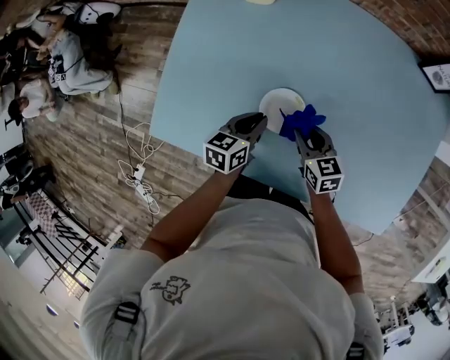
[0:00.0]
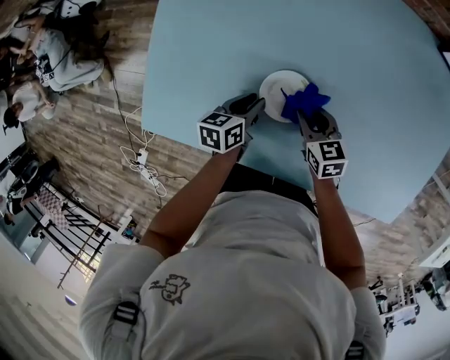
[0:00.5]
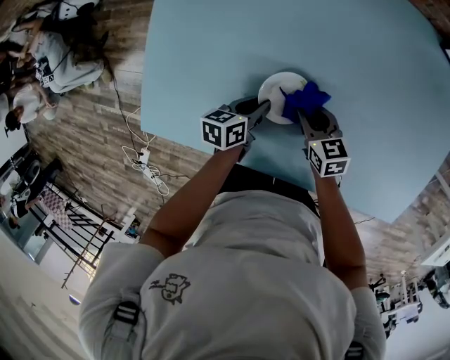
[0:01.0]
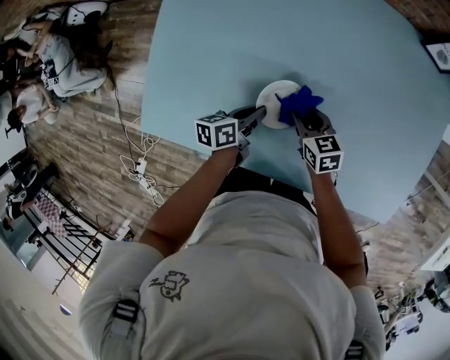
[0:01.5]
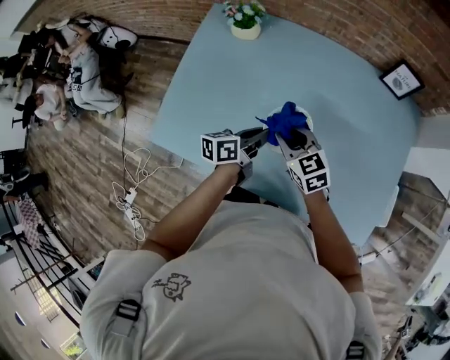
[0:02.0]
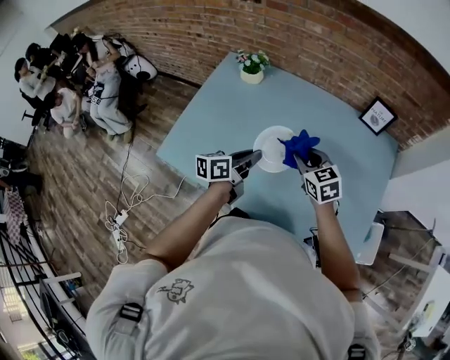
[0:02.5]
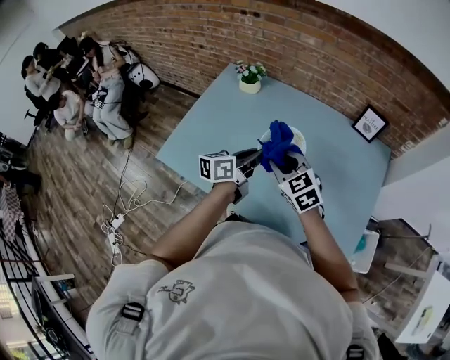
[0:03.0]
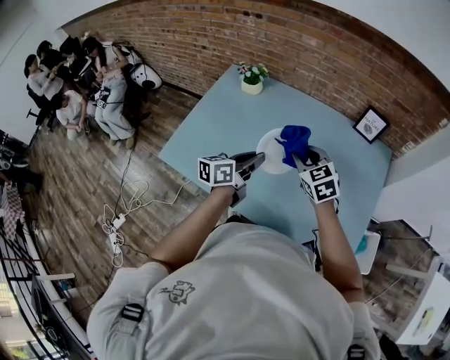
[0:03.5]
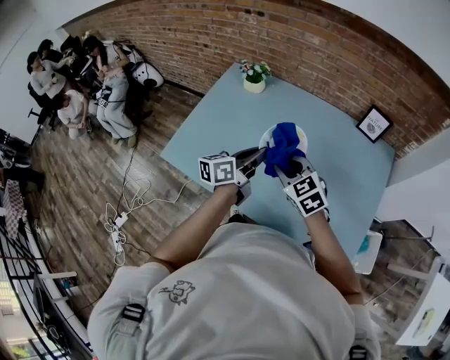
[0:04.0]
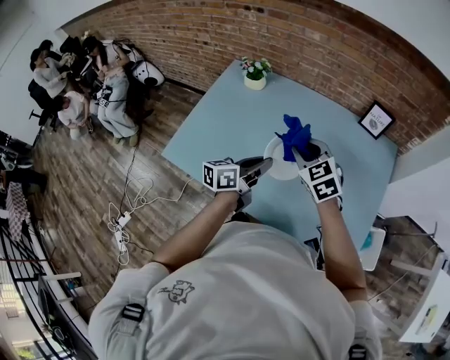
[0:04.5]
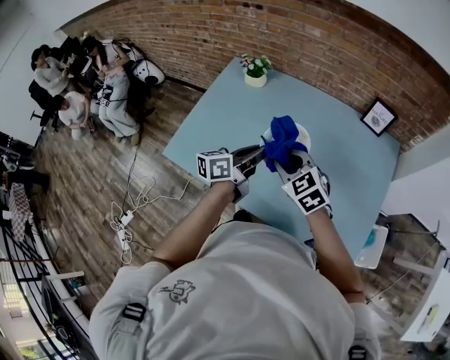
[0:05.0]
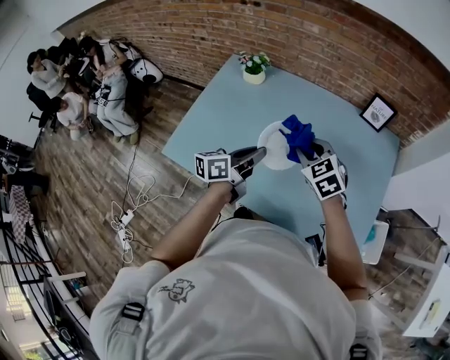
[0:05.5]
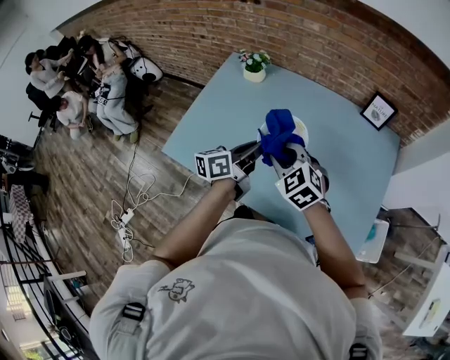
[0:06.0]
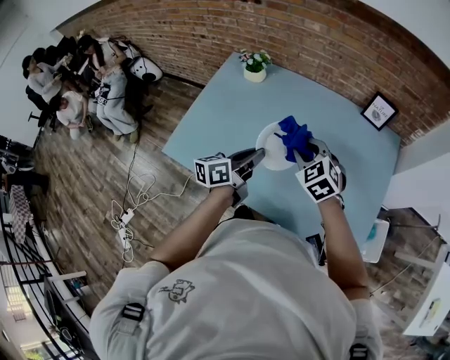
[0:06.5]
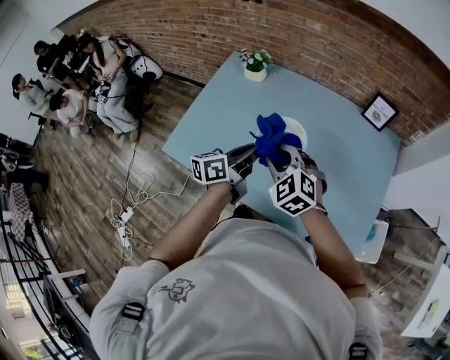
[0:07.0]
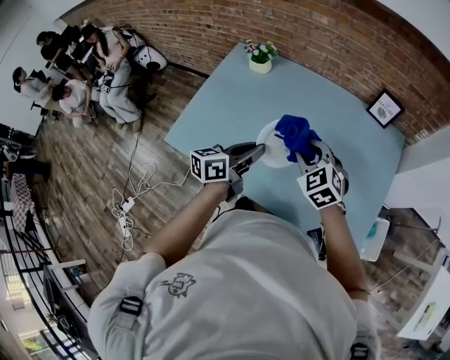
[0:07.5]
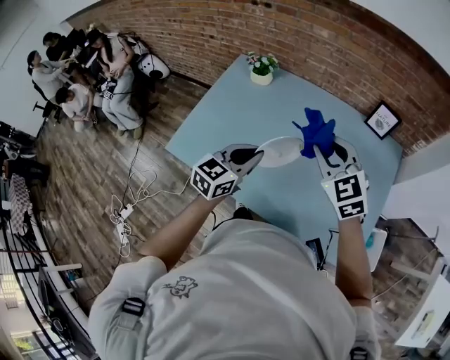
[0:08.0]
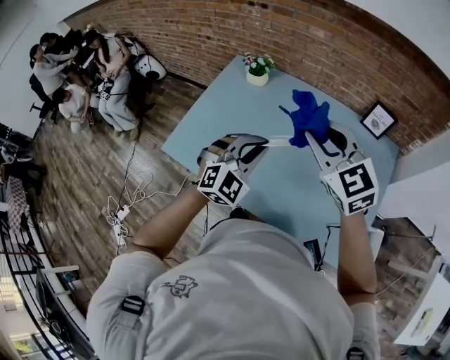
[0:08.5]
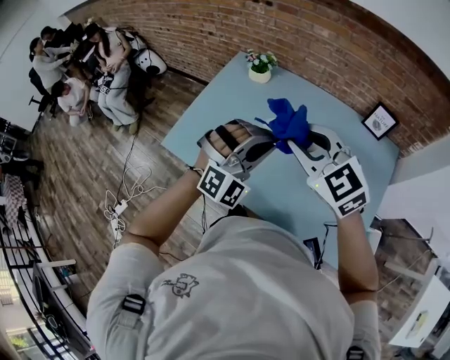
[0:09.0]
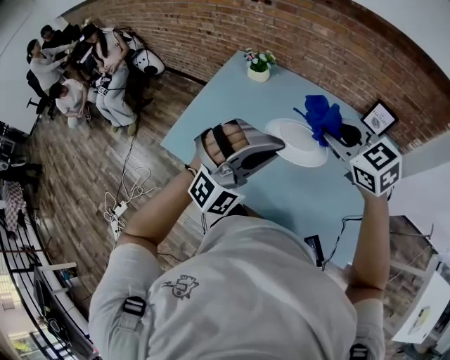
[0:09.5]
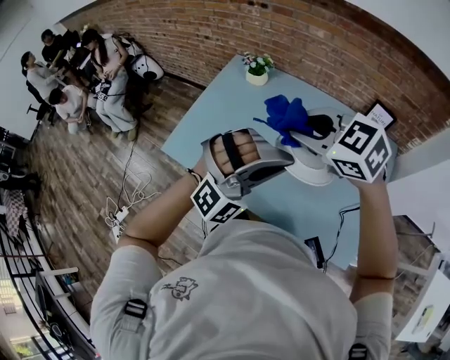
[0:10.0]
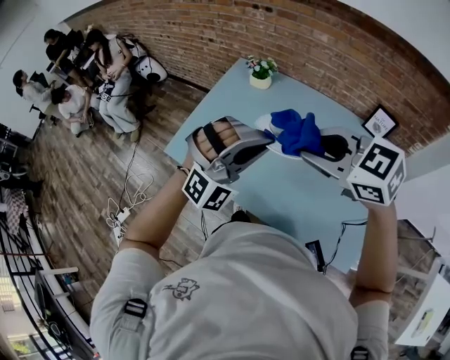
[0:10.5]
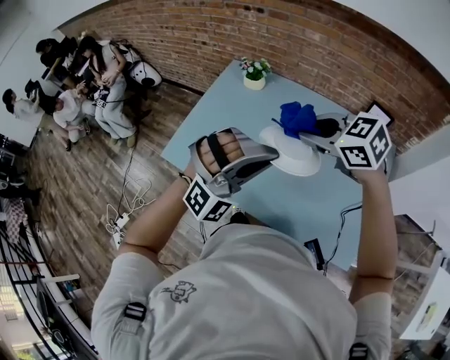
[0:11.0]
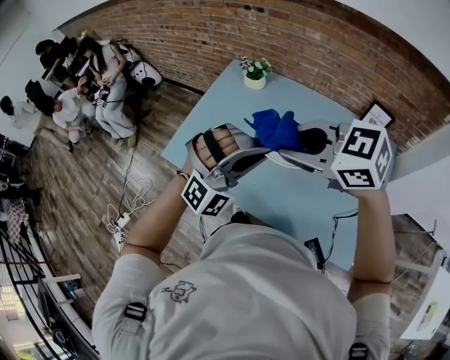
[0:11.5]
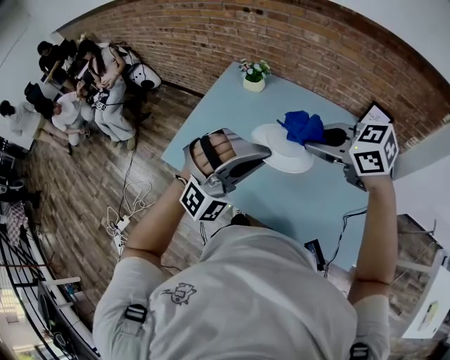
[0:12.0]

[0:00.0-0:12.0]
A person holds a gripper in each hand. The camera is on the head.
0:00.0 to 0:02.0: The right gripper heads upward, covering about 15 cm, and swivels approximately 20 degrees. The left gripper heads upward and to the right, covering some 15 cm, and swivels about 20 degrees.
0:02.0 to 0:04.0: Both grippers move upward and backward, approximately 20 cm. The left gripper turns by about 20 degrees.
0:06.0 to 0:08.0: The left gripper ends up some 5 cm from where it was, and turns by roughly 40 degrees, while the right gripper goes about 15 cm upward and to the right.
0:08.0 to 0:10.0: The left gripper heads upward, backward and to the right, covering about 15 cm, and rolls clockwise, seen from behind, by about 90 degrees; the right gripper swings left and right, approximately 10 cm each way, with 2 reversals, and rotates about 30 degrees.
0:10.0 to 0:12.0: The right gripper moves some 5 cm; the left gripper ends up roughly 5 cm from where it was.

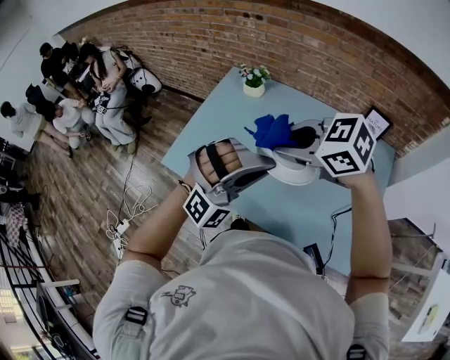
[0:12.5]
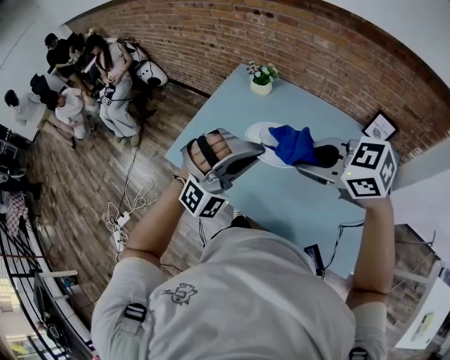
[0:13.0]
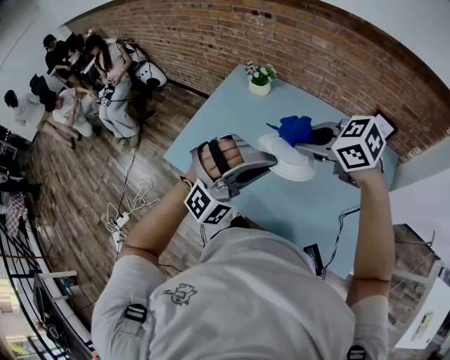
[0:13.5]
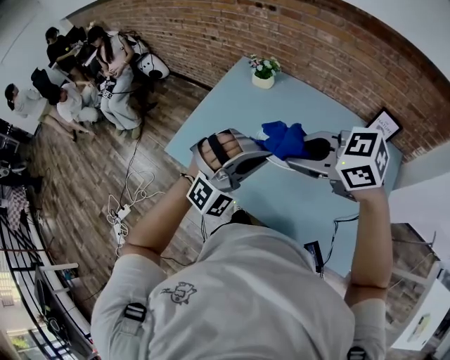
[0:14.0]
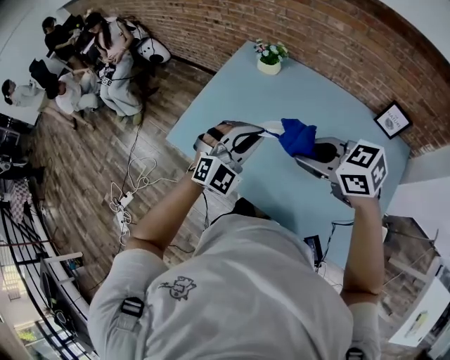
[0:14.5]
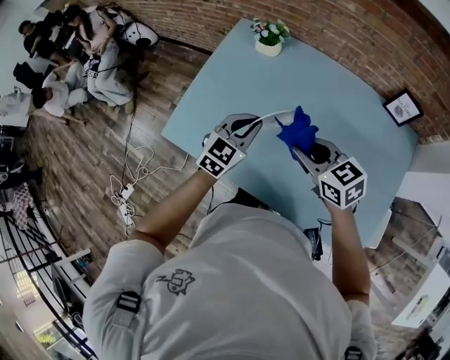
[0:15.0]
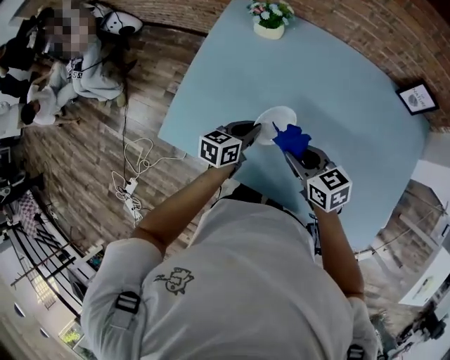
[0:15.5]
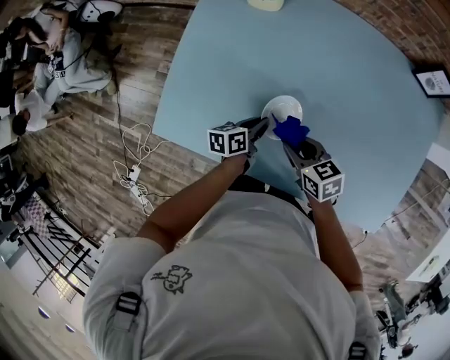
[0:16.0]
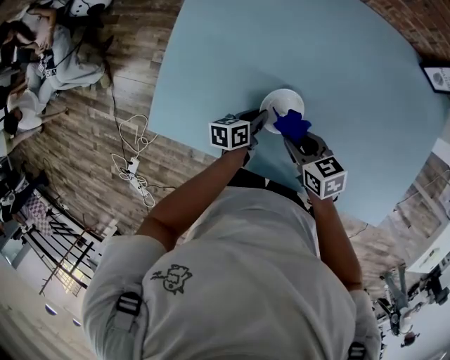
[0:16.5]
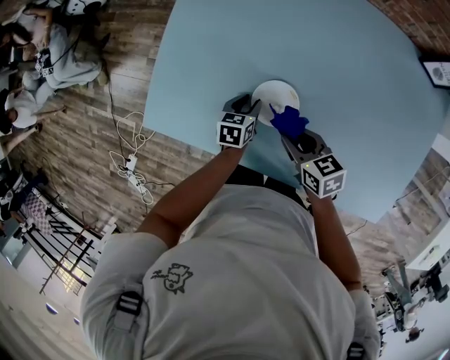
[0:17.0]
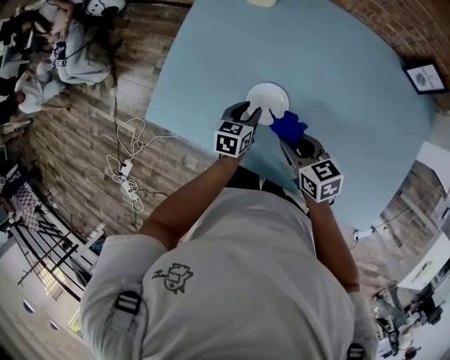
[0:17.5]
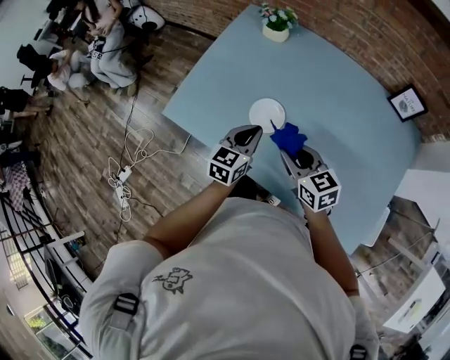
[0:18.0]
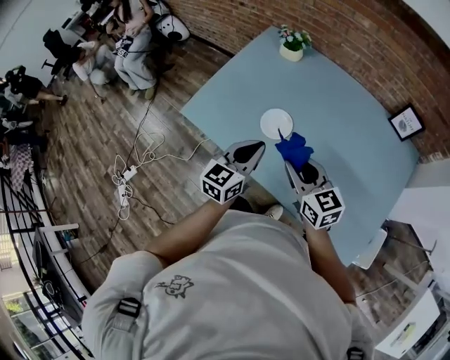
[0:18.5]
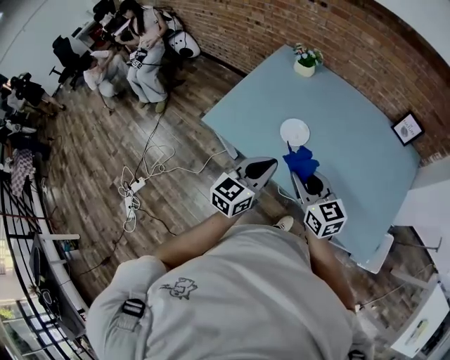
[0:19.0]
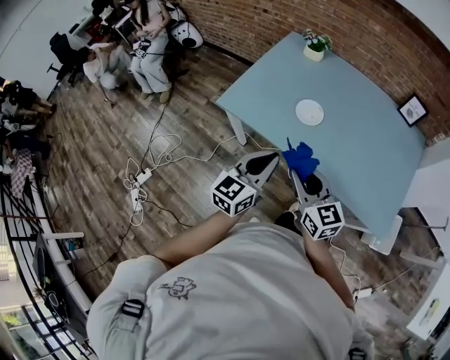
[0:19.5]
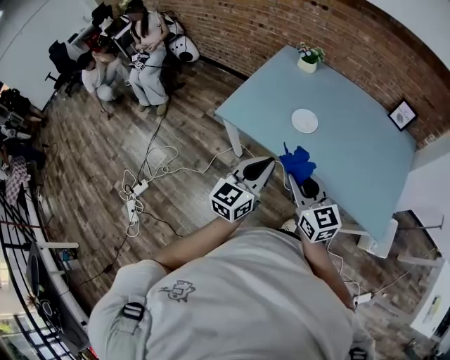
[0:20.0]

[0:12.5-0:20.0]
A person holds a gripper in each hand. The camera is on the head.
0:12.5 to 0:14.5: The left gripper moves approximately 15 cm, and turns by roughly 40 degrees; the right gripper heads downward, covering roughly 10 cm.
0:14.5 to 0:16.5: The two grippers go some 35 cm downward. The right gripper swivels some 40 degrees. The left gripper rotates around the line of its fingers by roughly 100 degrees, counterclockwise from behind.
0:16.5 to 0:18.0: Both grippers travel together upward and backward, approximately 20 cm. The left gripper rotates about 40 degrees, and opens and closes again. Meanwhile the right gripper rotates some 30 degrees.
0:18.0 to 0:20.0: Both grippers travel together backward, to the left and upward, roughly 35 cm. The left gripper changes its angle by roughly 20 degrees; the right gripper swivels roughly 20 degrees.

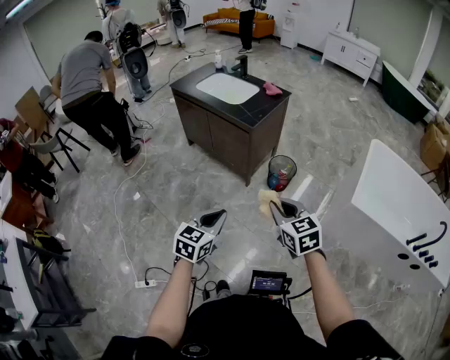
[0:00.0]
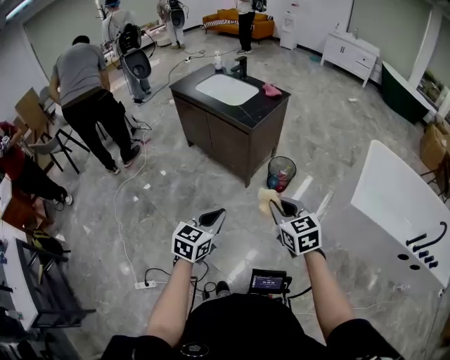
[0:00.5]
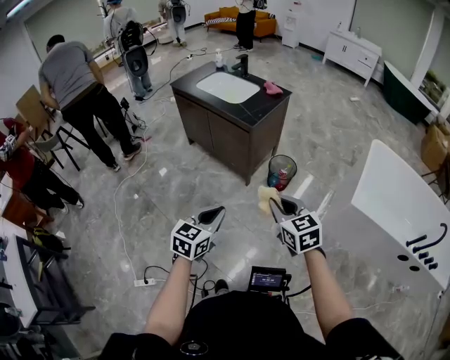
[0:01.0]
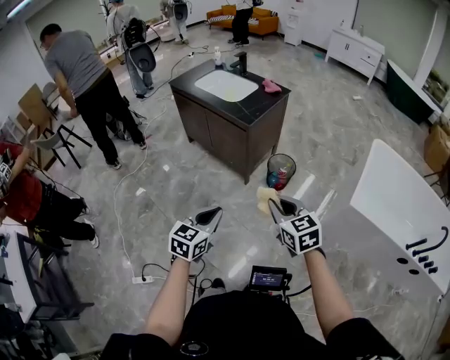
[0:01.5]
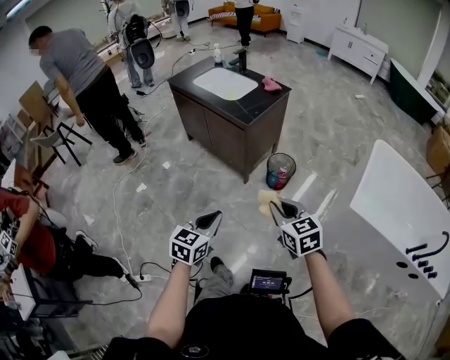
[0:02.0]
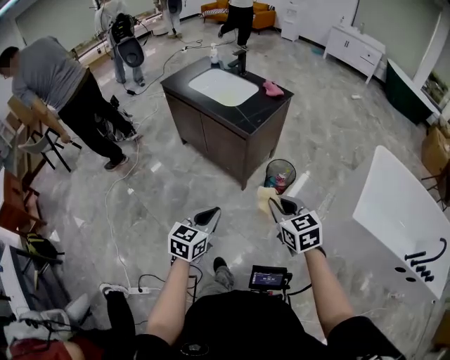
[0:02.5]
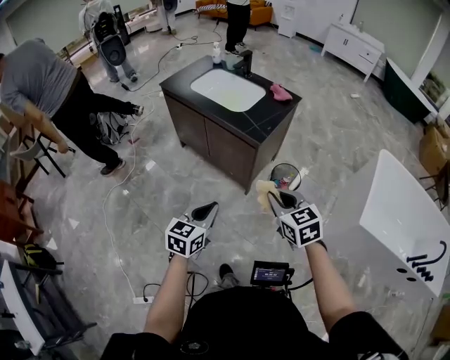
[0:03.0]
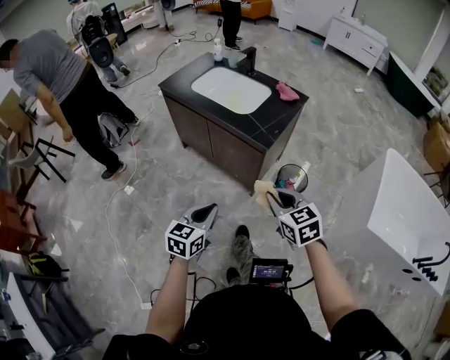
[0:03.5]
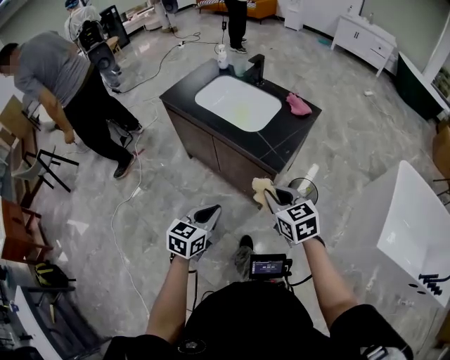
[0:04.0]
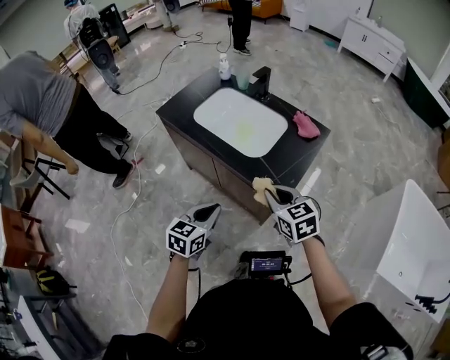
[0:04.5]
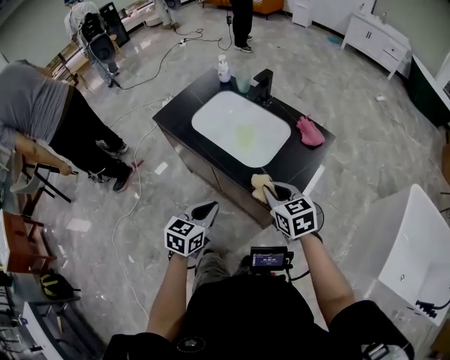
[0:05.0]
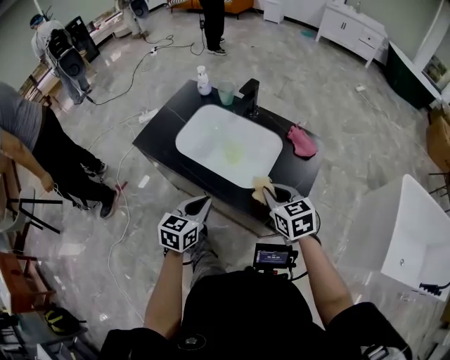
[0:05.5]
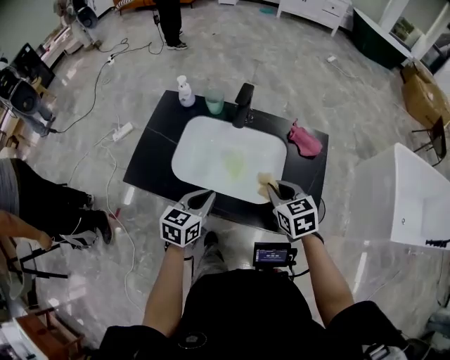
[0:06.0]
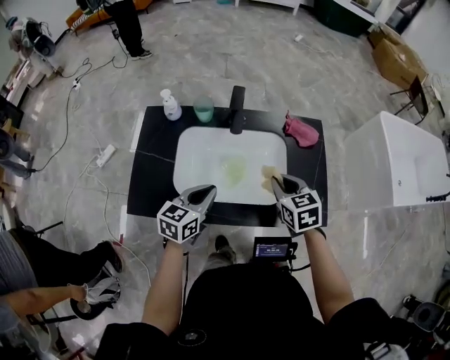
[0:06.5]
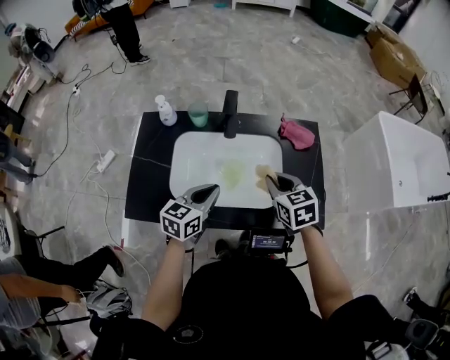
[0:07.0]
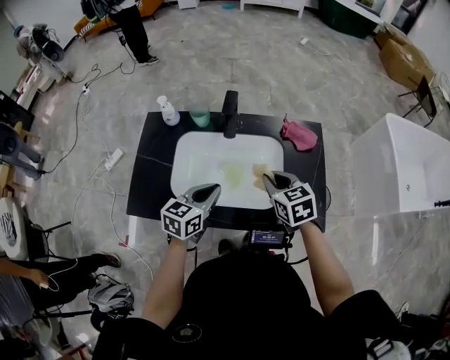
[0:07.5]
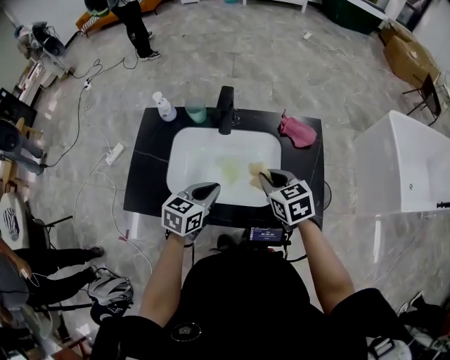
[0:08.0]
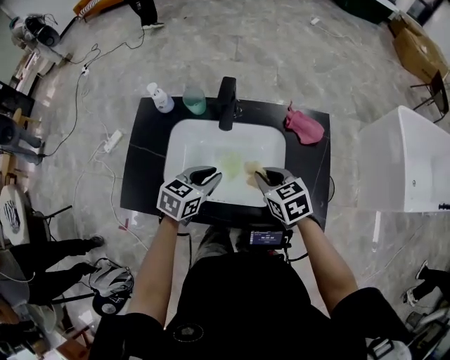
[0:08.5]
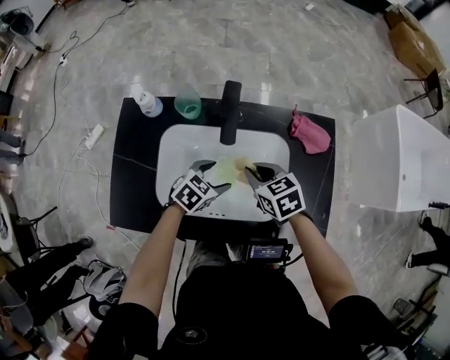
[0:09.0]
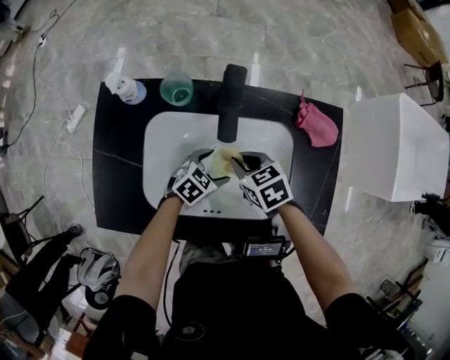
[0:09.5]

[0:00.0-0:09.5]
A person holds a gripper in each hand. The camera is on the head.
0:00.0 to 0:02.0: The right gripper goes roughly 5 cm to the right.
0:02.0 to 0:04.0: Both grippers travel together forward and to the left, about 40 cm.
0:04.0 to 0:05.5: The grippers both shift forward by about 30 cm.
0:05.5 to 0:07.5: The right gripper changes place by about 15 cm, and turns by about 30 degrees; the left gripper moves approximately 20 cm, and turns by roughly 30 degrees.
0:07.5 to 0:09.5: The left gripper heads downward and forward, covering some 25 cm, turns by some 40 degrees, and opens; the right gripper goes about 20 cm downward, to the left and forward, and rotates roughly 20 degrees.
